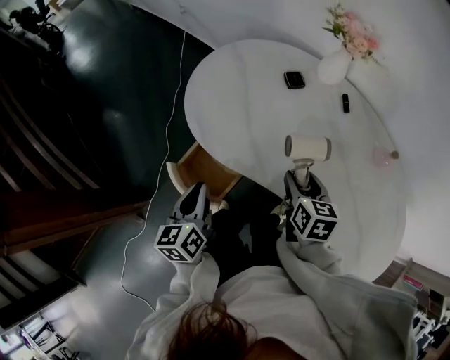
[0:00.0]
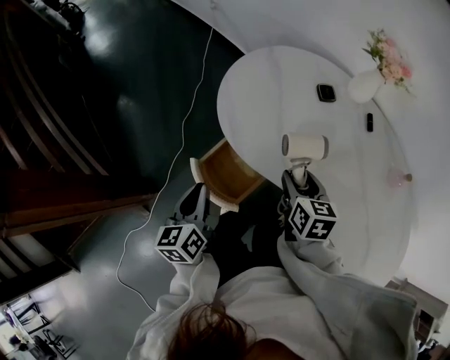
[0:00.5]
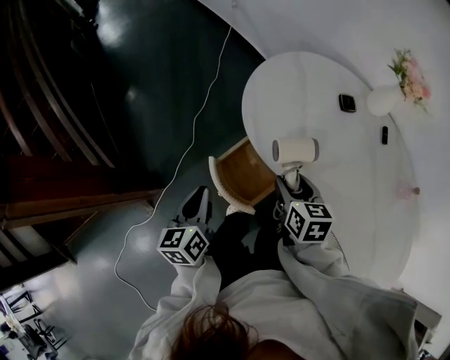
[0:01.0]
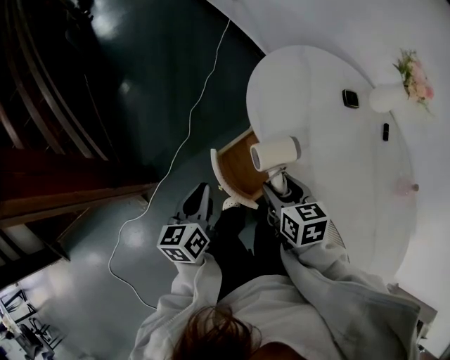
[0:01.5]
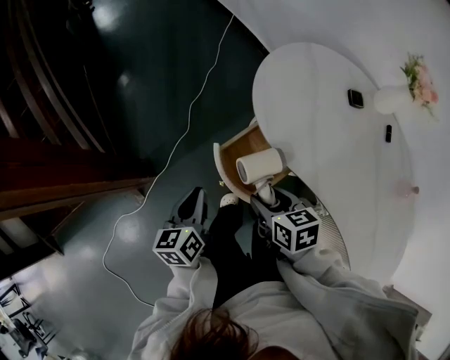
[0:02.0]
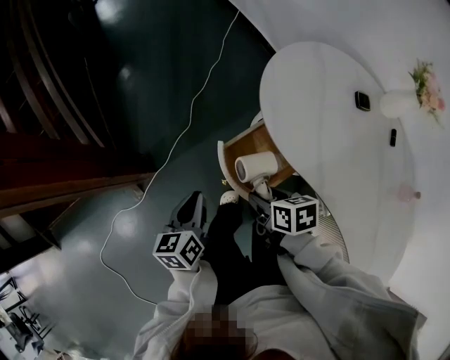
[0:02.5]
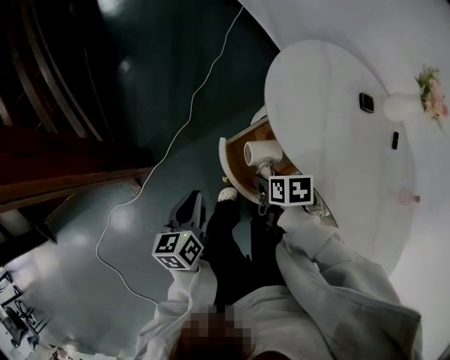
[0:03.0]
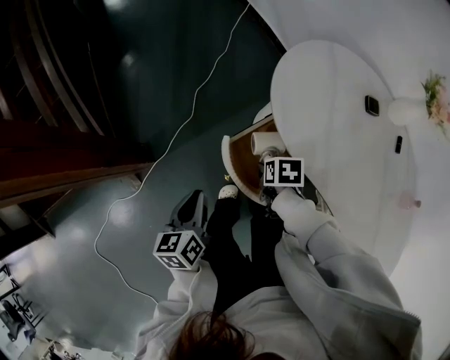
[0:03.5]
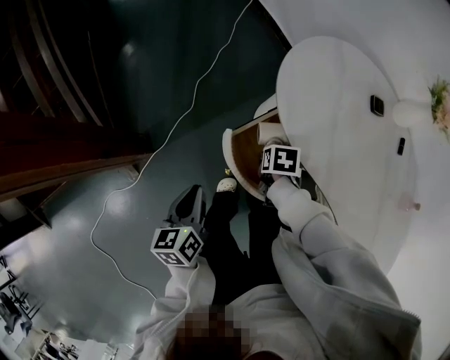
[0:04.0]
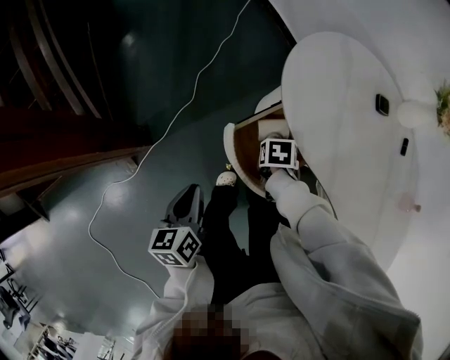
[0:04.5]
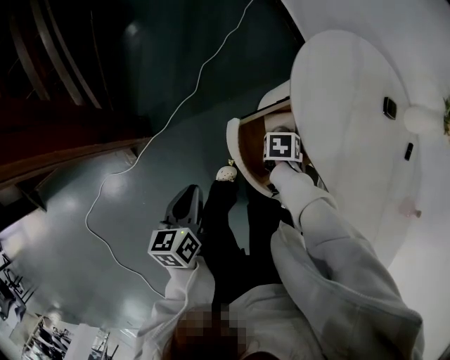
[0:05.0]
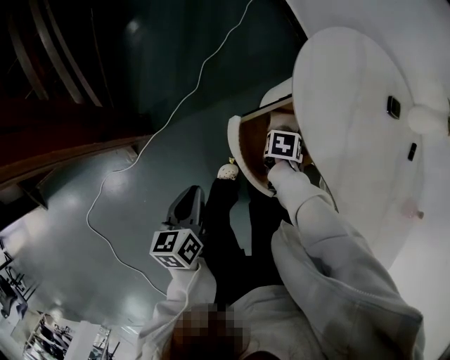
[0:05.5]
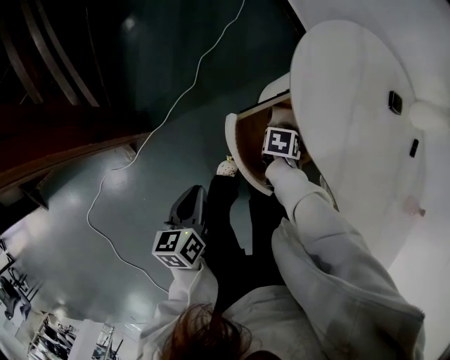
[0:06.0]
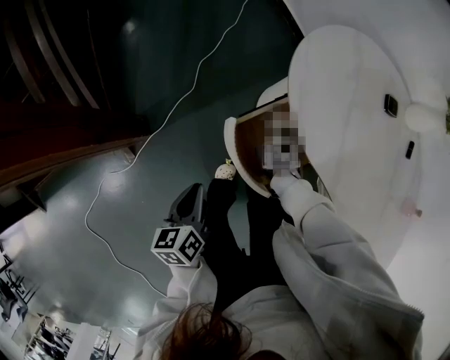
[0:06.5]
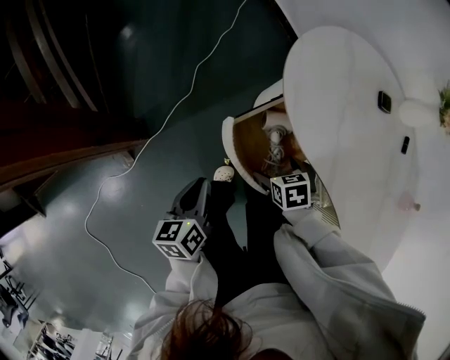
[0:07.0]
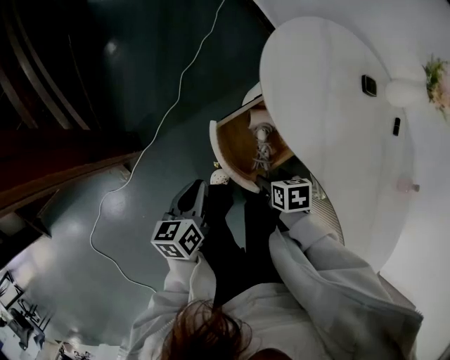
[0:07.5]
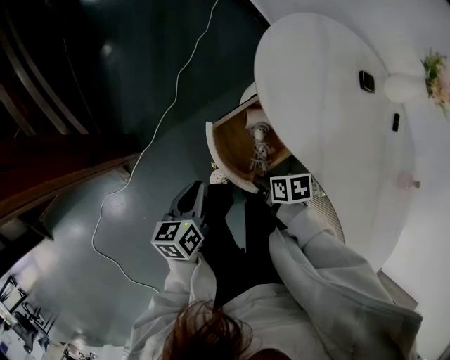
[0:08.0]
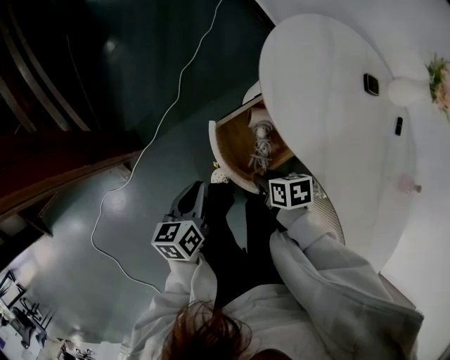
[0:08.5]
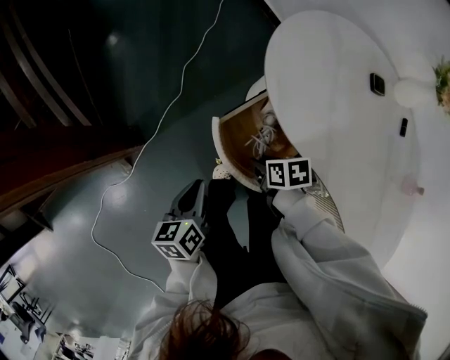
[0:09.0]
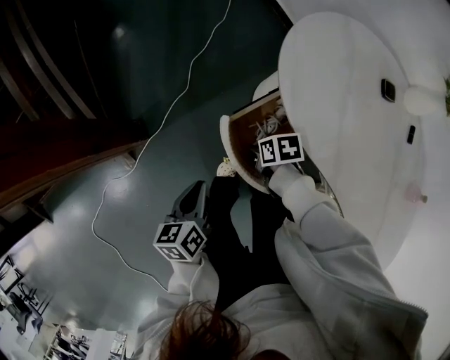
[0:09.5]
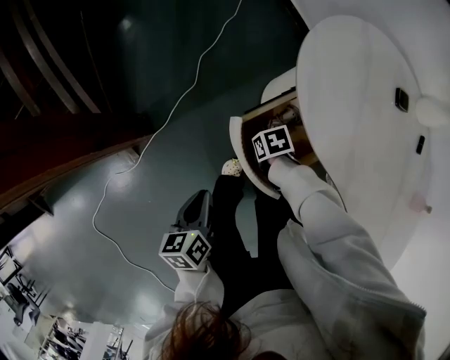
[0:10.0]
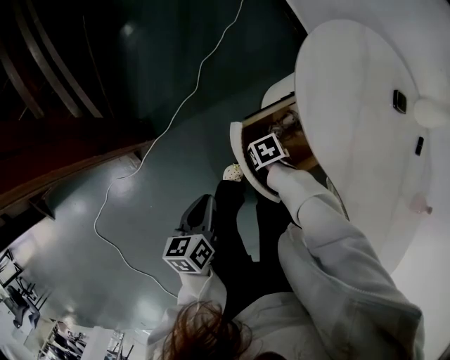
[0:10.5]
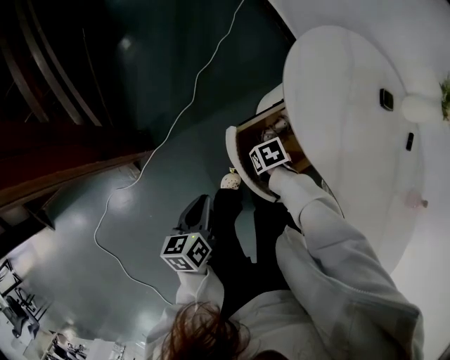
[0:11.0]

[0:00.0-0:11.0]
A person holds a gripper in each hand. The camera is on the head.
0:00.0 to 0:02.0: The right gripper changes place by about 30 cm, and changes its angle by approximately 40 degrees. The left gripper moves roughly 20 cm.
0:02.0 to 0:03.5: The right gripper heads downward, covering some 15 cm, and rotates roughly 30 degrees.
0:03.5 to 0:05.5: The right gripper travels downward by approximately 10 cm.
0:05.5 to 0:07.5: The right gripper shifts by some 15 cm, and rotates approximately 20 degrees. The left gripper moves roughly 5 cm.
0:07.5 to 0:09.0: The right gripper heads forward, covering roughly 5 cm, and closes up.
0:09.0 to 0:11.0: The right gripper shifts some 10 cm downward, turns by approximately 30 degrees, and opens.

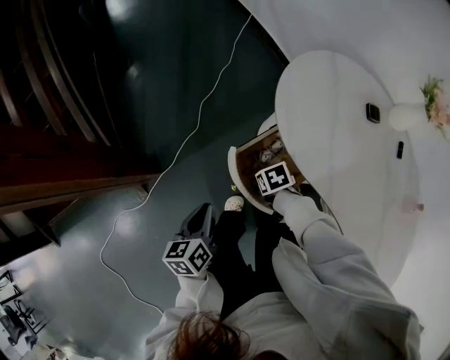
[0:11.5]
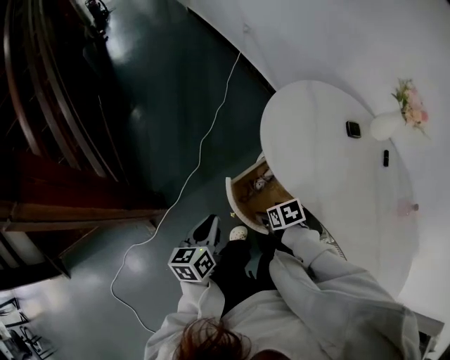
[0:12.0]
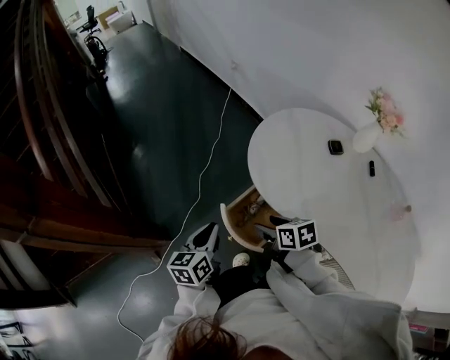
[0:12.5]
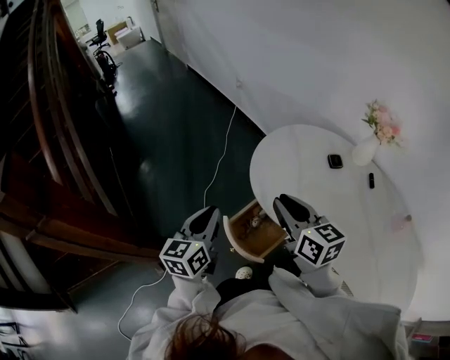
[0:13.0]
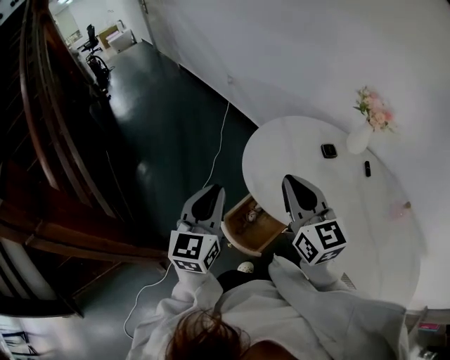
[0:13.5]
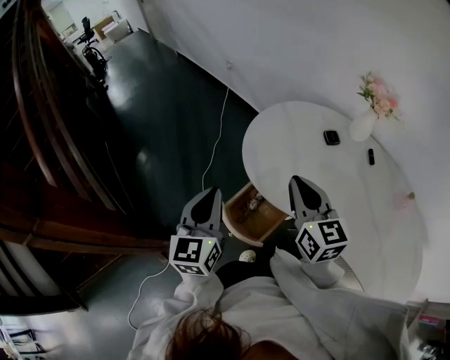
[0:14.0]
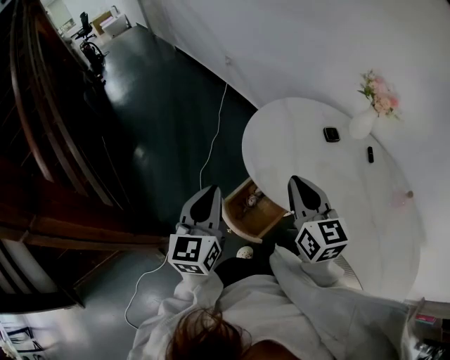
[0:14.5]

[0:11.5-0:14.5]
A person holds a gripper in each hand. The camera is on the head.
0:11.5 to 0:13.0: The left gripper goes roughly 20 cm upward, and swivels about 30 degrees; the right gripper goes some 40 cm upward, tilts its fingers about 60 degrees upward, and closes its fingers.
0:13.0 to 0:14.5: The right gripper moves to the right, roughly 5 cm.

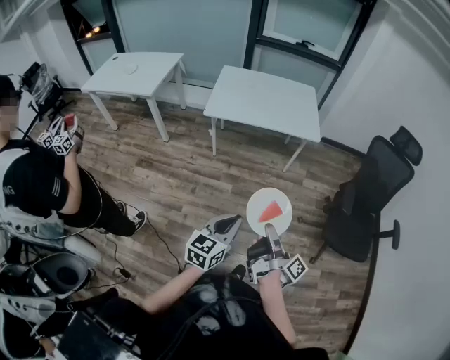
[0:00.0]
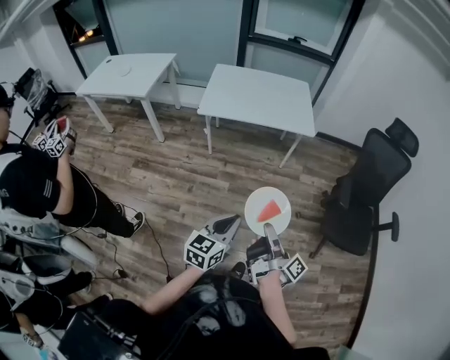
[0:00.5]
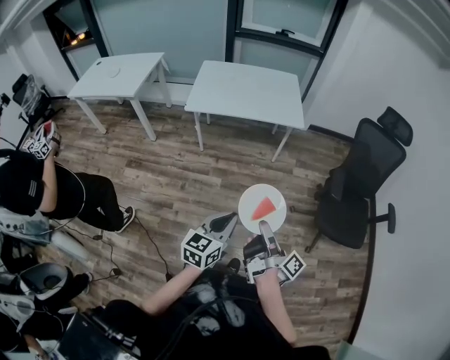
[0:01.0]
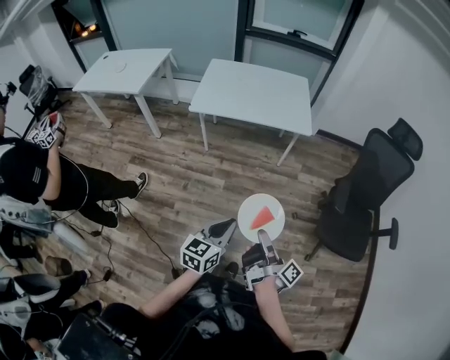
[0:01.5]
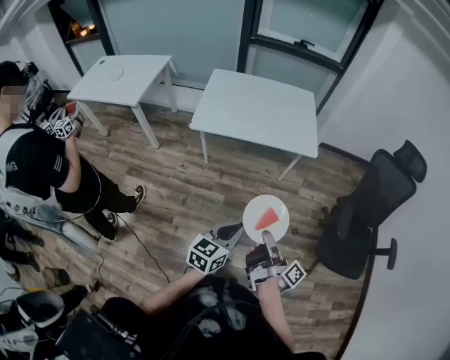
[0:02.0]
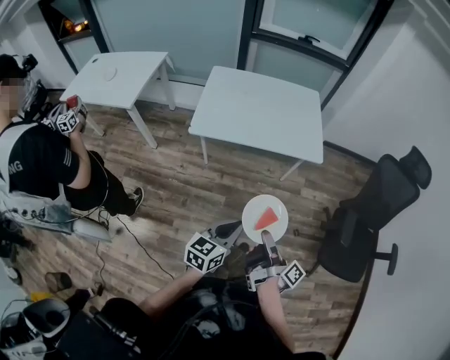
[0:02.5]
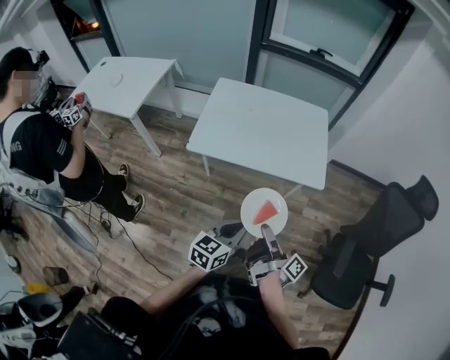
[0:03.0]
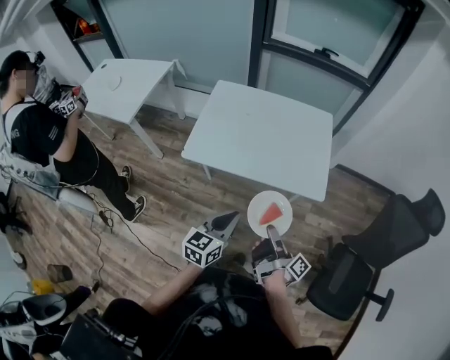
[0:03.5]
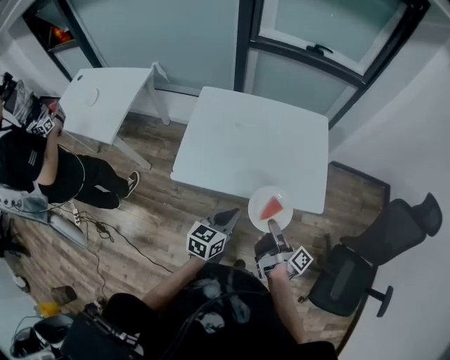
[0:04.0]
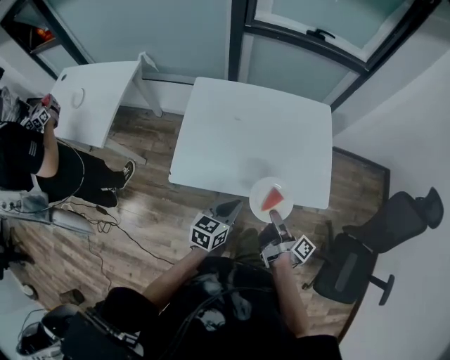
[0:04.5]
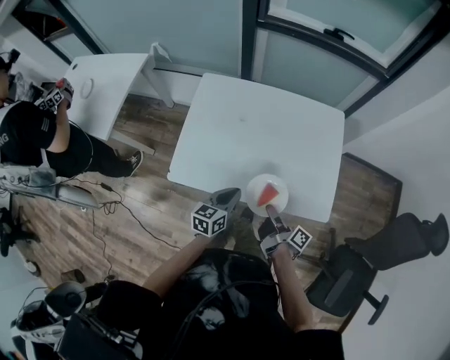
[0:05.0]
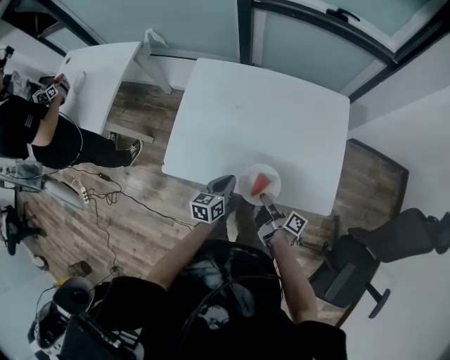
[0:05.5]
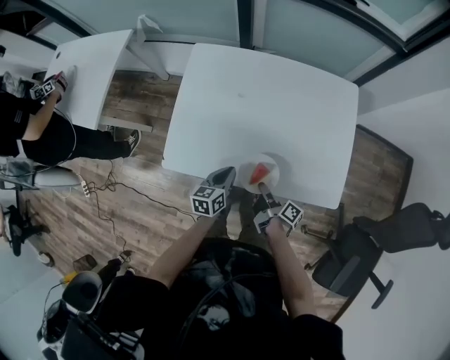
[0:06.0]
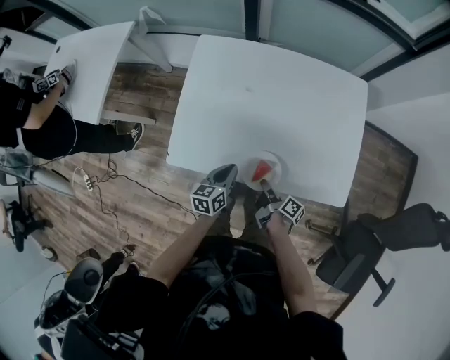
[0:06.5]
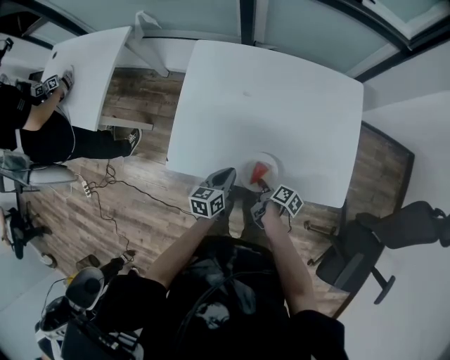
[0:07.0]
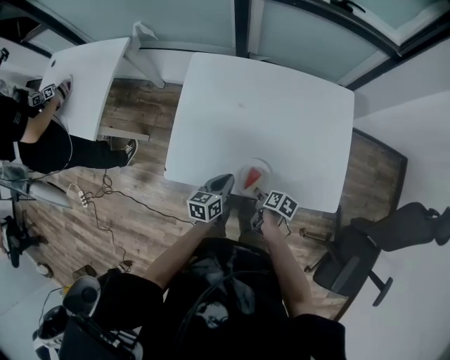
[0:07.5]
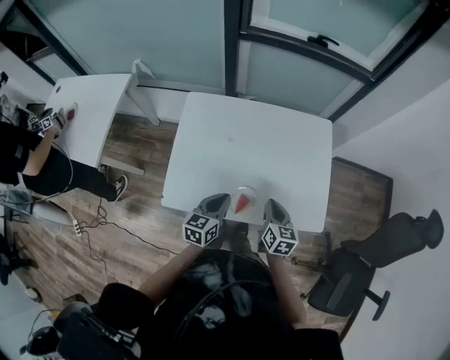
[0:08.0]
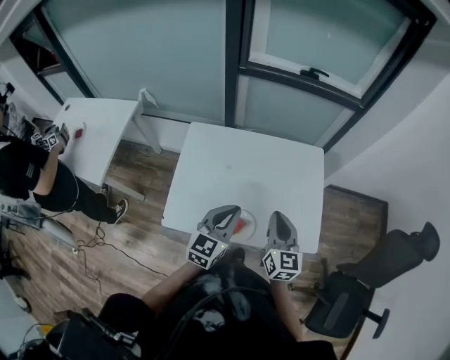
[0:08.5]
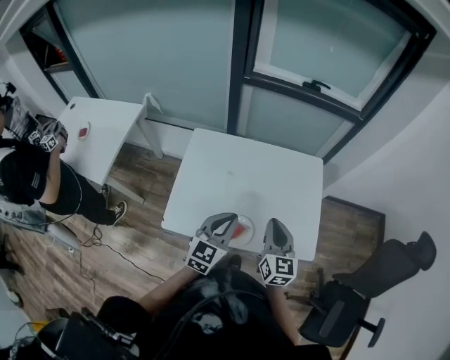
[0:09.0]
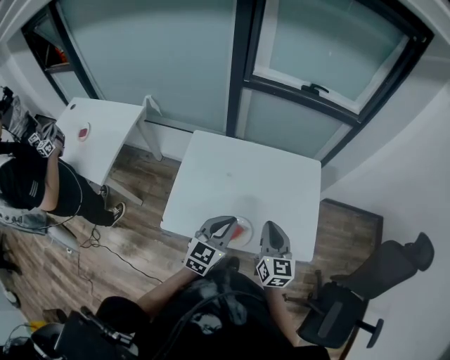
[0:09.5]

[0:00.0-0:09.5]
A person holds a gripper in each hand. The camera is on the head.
0:00.0 to 0:02.0: The left gripper shifts by some 15 cm.
0:02.0 to 0:04.0: The left gripper shifts by some 40 cm.
0:04.0 to 0:05.5: The left gripper changes place by roughly 20 cm.
0:07.5 to 0:09.5: The left gripper goes roughly 25 cm upward, and turns by about 40 degrees.

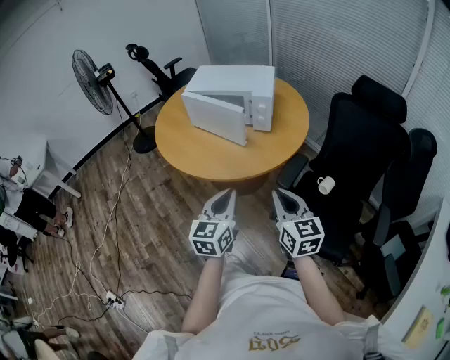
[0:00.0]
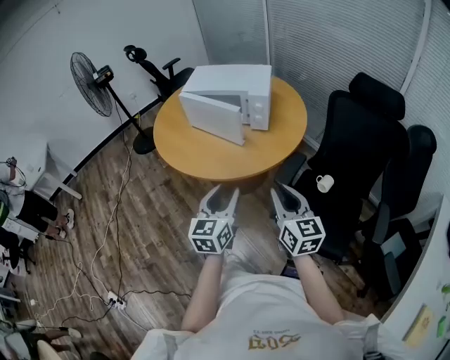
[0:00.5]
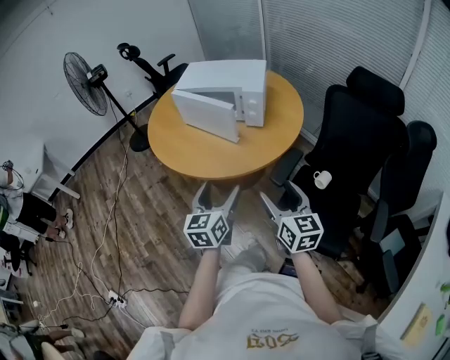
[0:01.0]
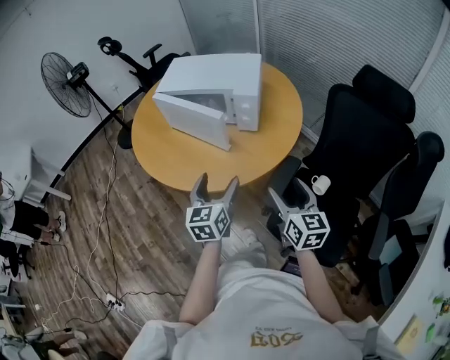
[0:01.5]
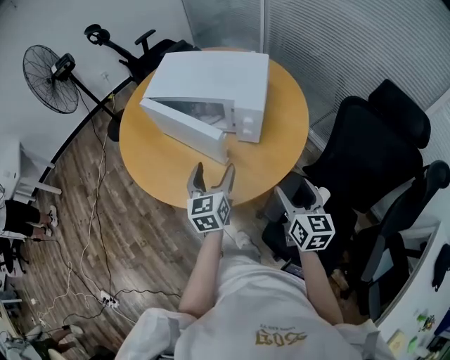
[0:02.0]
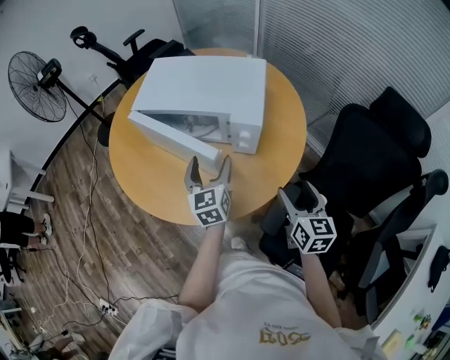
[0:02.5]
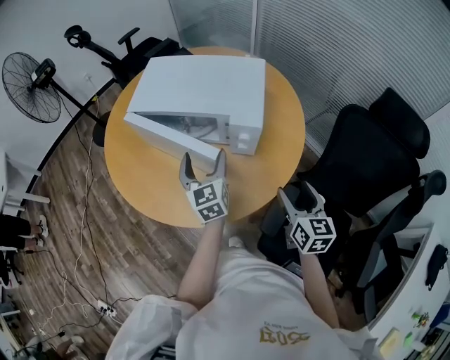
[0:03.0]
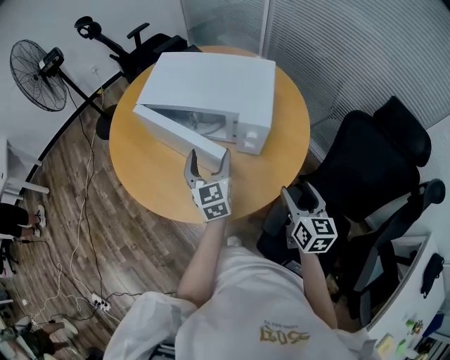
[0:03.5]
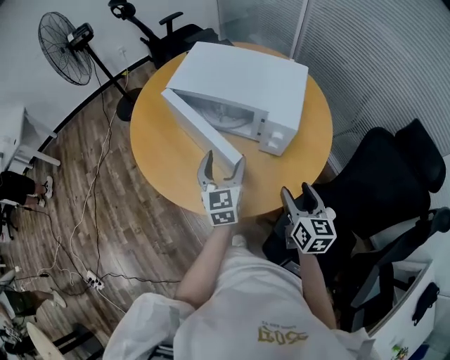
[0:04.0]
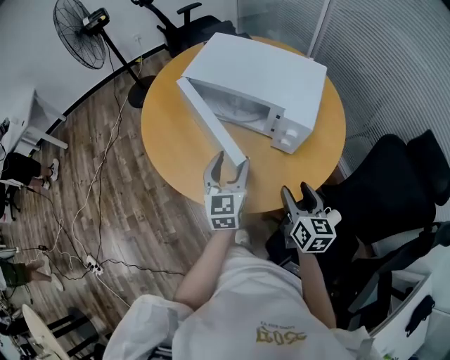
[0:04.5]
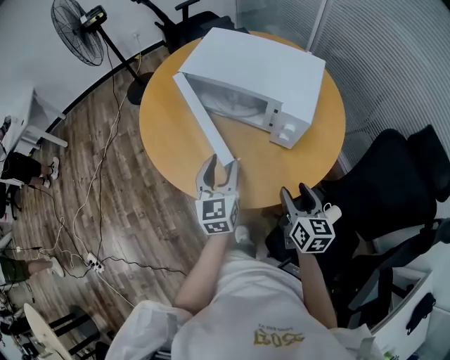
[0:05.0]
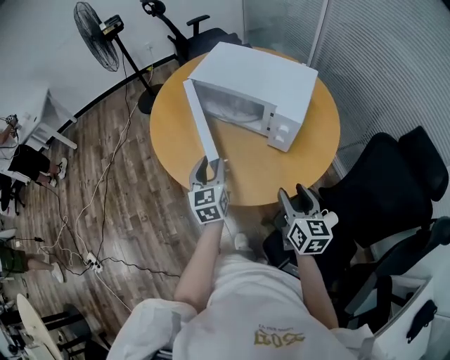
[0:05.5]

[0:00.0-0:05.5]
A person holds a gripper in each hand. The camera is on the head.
0:00.0 to 0:02.0: The right gripper travels forward and to the right by some 25 cm, and opens its fingers. The left gripper travels forward by about 30 cm, and opens.
0:02.0 to 0:03.5: The left gripper is displaced forward by approximately 10 cm. The right gripper goes about 5 cm forward.
0:03.5 to 0:05.5: The left gripper heads to the left and backward, covering about 15 cm, and closes its fingers. Meanwhile the right gripper is displaced to the left by about 10 cm.
